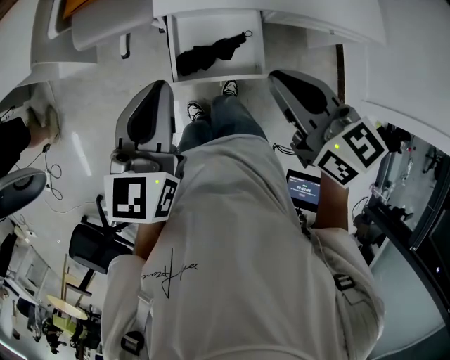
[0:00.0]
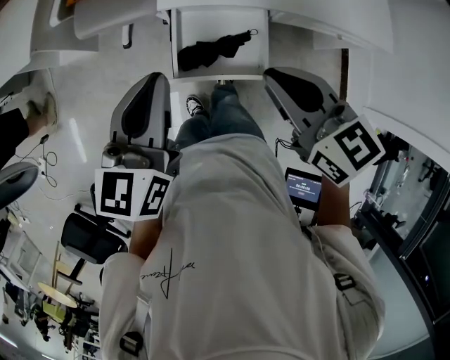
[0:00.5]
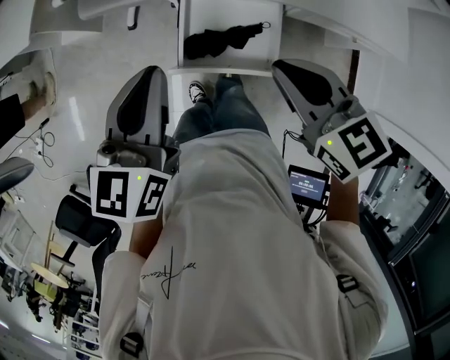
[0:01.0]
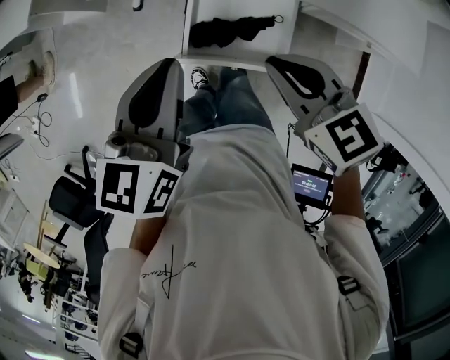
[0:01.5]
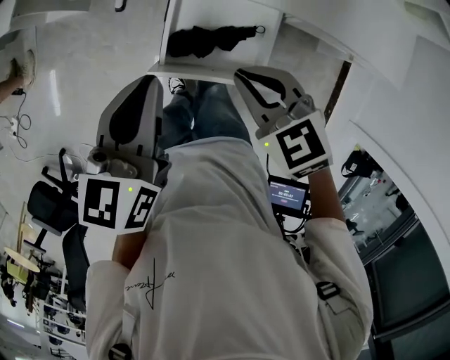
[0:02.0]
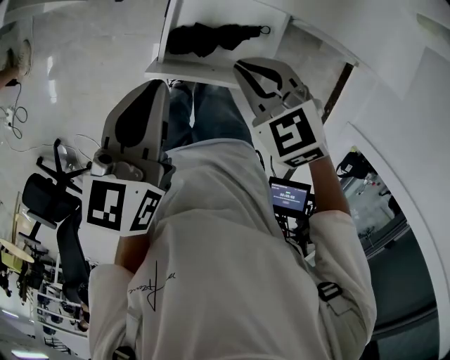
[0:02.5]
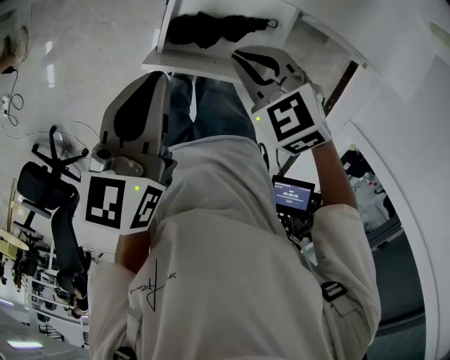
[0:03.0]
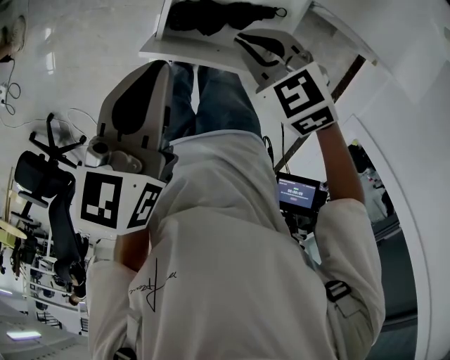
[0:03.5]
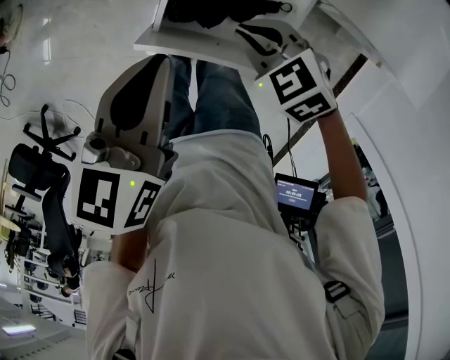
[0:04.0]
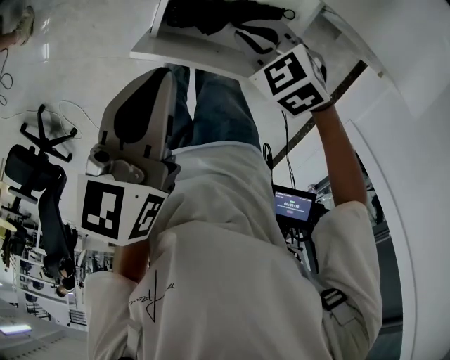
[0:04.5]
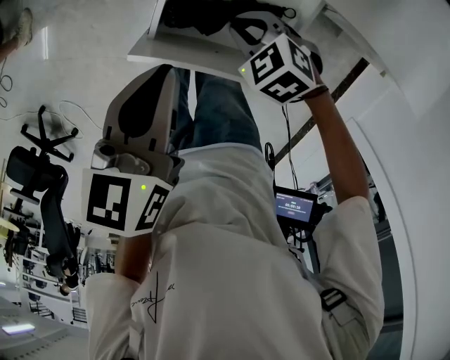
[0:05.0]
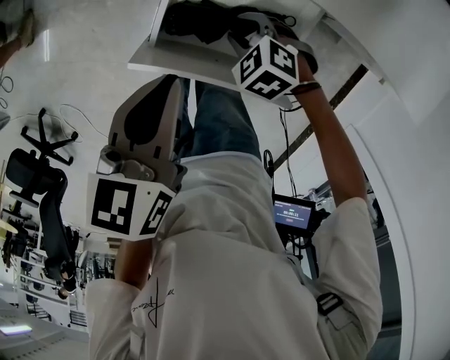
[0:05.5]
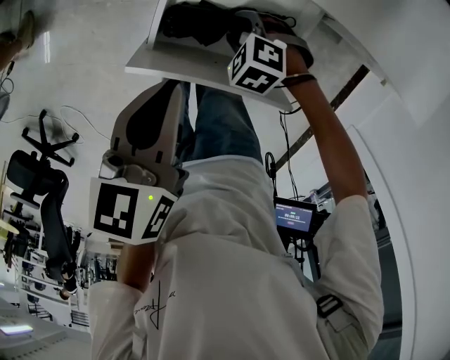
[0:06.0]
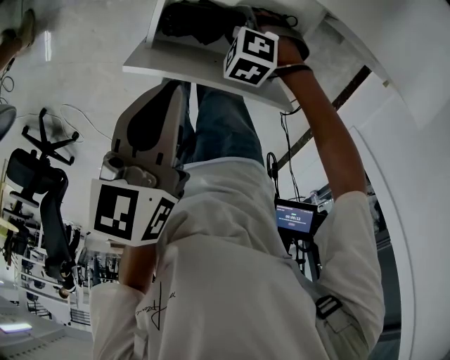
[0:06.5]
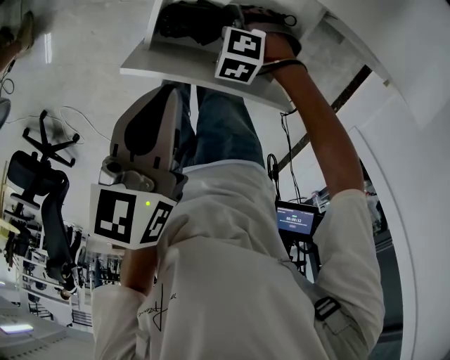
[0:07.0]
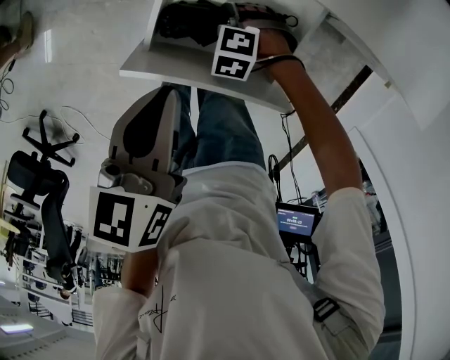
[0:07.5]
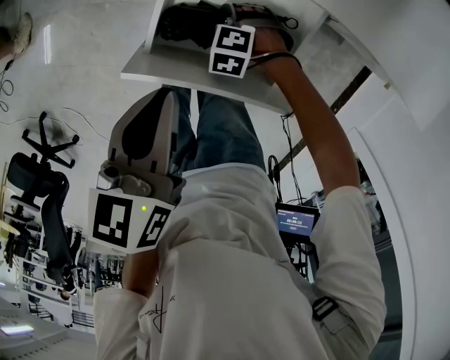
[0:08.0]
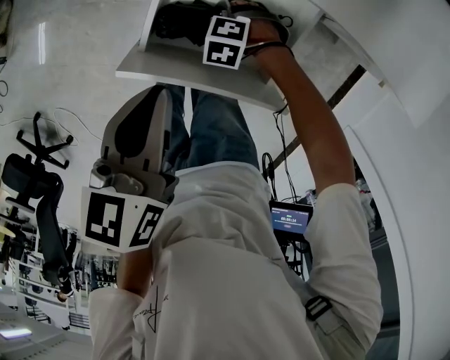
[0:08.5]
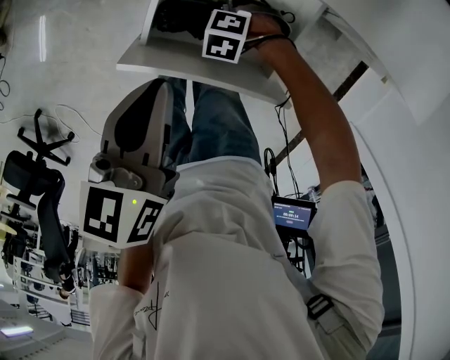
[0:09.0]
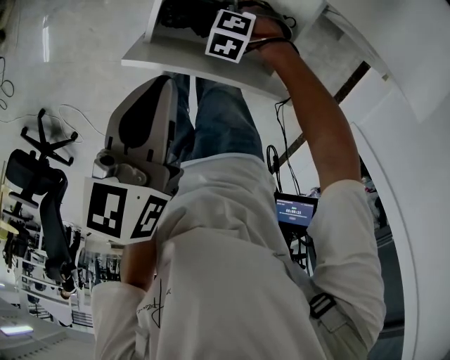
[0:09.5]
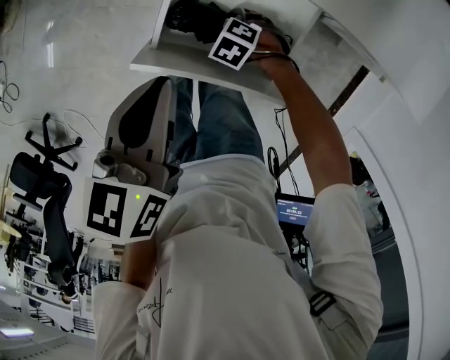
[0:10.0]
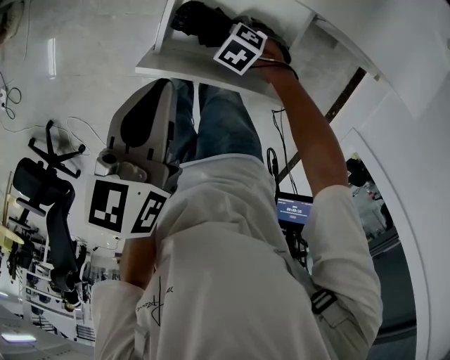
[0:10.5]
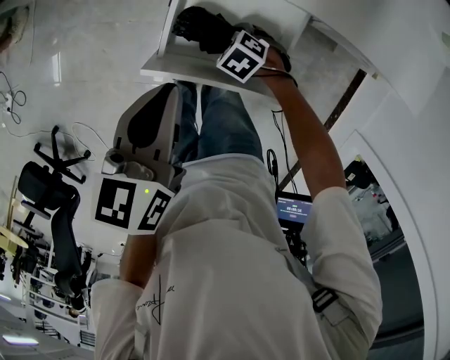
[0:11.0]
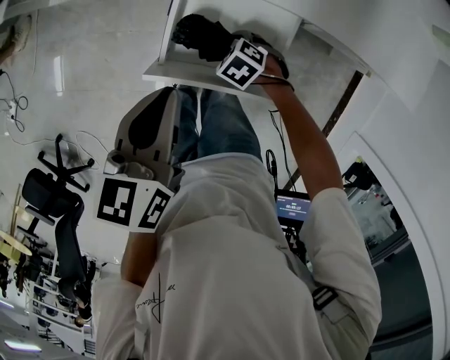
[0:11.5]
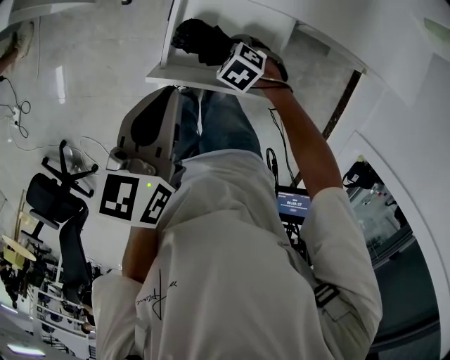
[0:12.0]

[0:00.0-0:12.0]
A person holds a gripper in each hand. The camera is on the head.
0:00.0 to 0:02.0: The left gripper is displaced downward by approximately 5 cm. Meanwhile the right gripper travels downward and forward by approximately 15 cm, and turns by about 40 degrees.
0:02.0 to 0:04.0: The right gripper goes about 15 cm downward, and rotates approximately 20 degrees. The left gripper goes roughly 10 cm downward.
0:04.0 to 0:06.0: The right gripper moves downward, about 15 cm, rotates about 30 degrees, and opens.
0:06.0 to 0:08.0: The right gripper goes about 5 cm downward.
0:08.0 to 0:10.0: The grippers stay close to where they were, moving slightly.
0:10.0 to 0:12.0: The right gripper is displaced upward by some 10 cm. The left gripper moves some 5 cm.

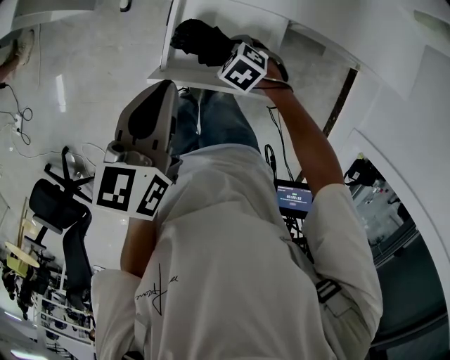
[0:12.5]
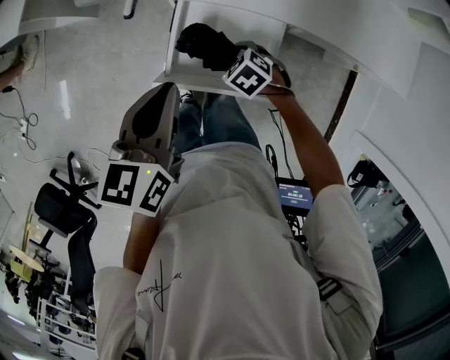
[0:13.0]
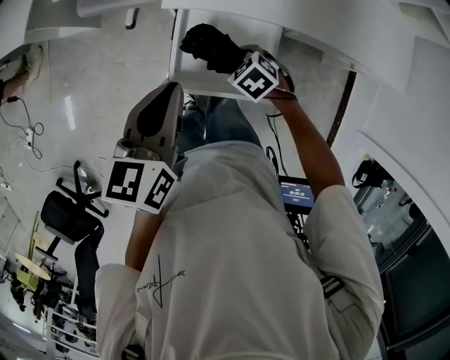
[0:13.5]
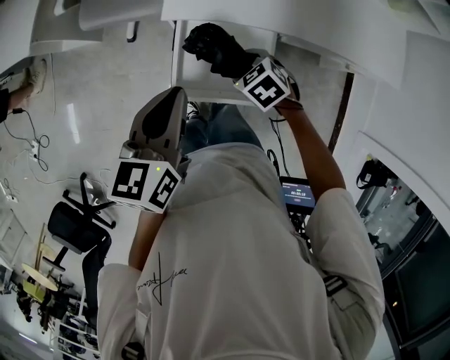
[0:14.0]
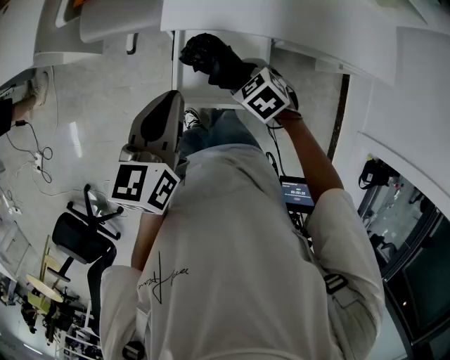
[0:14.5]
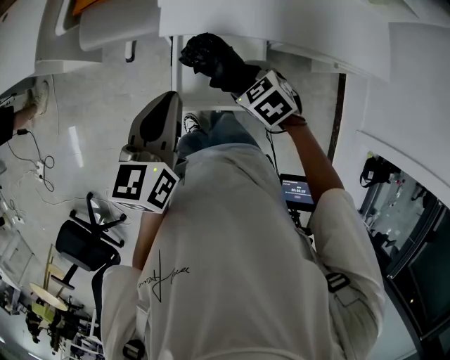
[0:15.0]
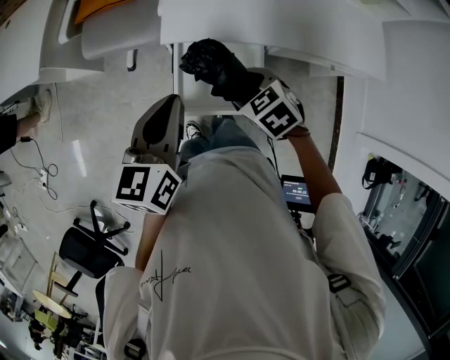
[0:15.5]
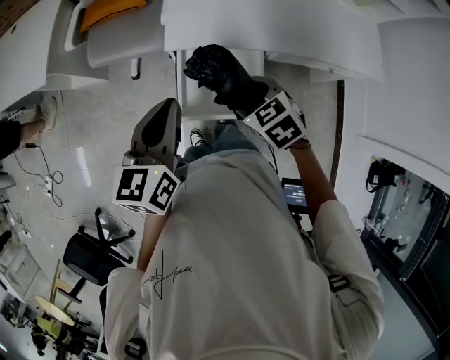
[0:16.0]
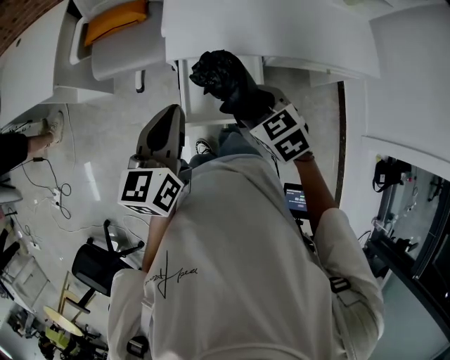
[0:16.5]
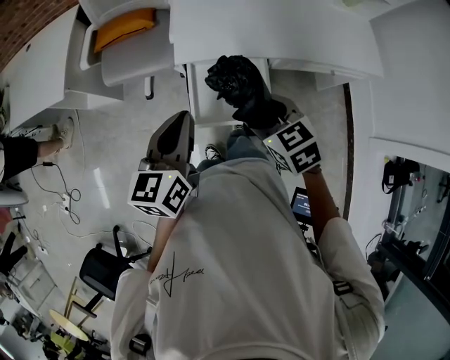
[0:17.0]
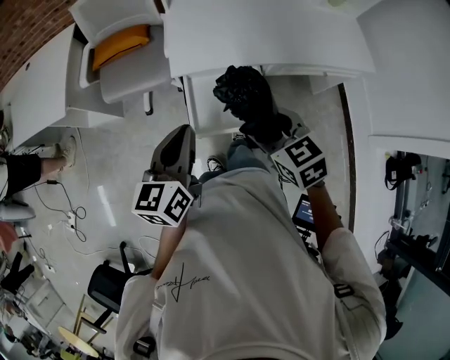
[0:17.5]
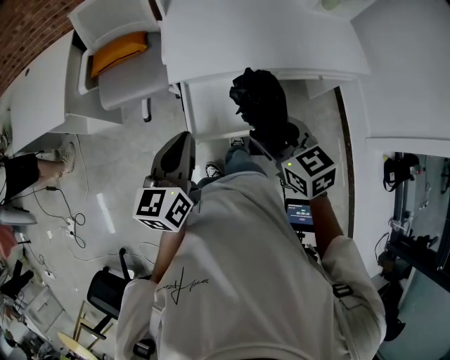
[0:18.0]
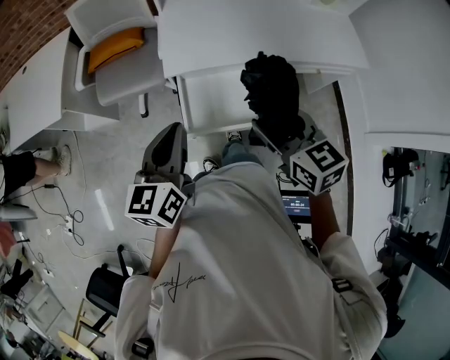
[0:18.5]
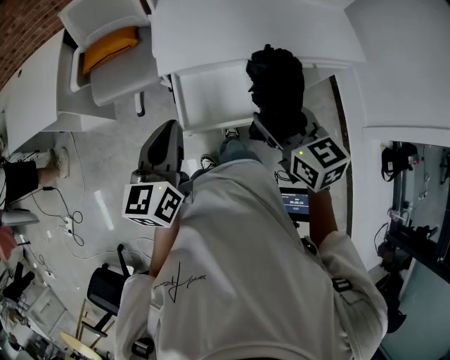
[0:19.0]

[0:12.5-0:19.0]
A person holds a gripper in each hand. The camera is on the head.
0:12.5 to 0:14.5: The right gripper goes approximately 15 cm upward; the left gripper changes place by some 5 cm.
0:14.5 to 0:17.0: The left gripper changes place by some 5 cm; the right gripper moves upward and backward, some 15 cm, and changes its angle by some 30 degrees.
0:17.0 to 0:19.0: The right gripper travels upward and to the right by about 10 cm, and changes its angle by roughly 20 degrees.

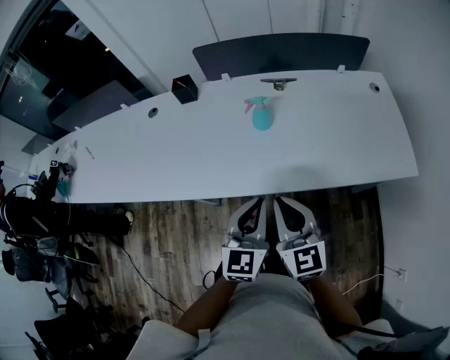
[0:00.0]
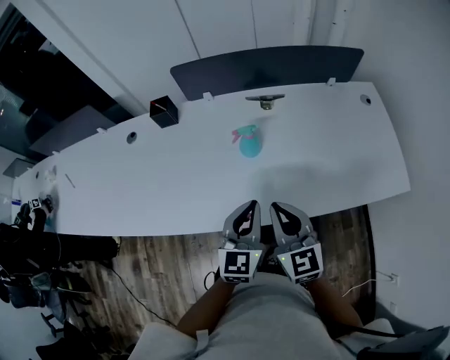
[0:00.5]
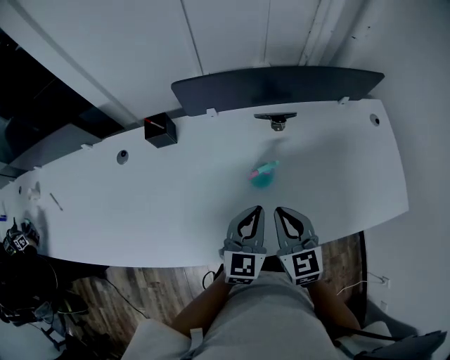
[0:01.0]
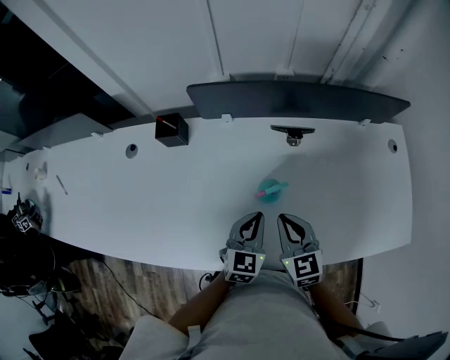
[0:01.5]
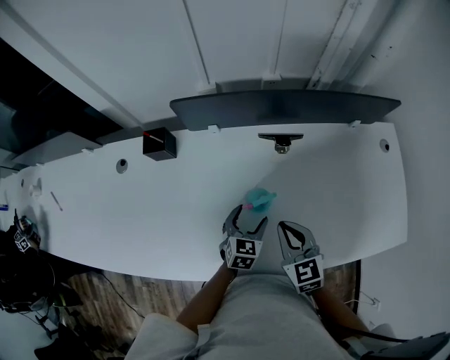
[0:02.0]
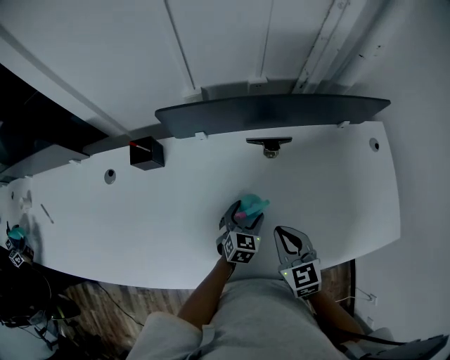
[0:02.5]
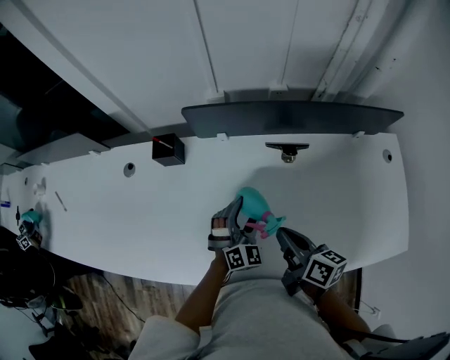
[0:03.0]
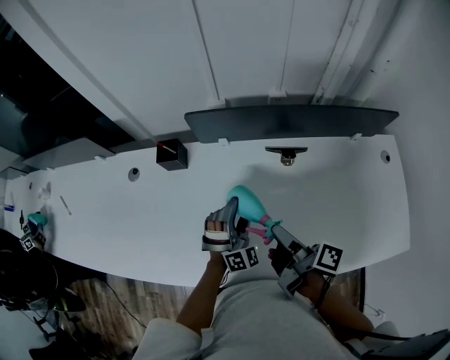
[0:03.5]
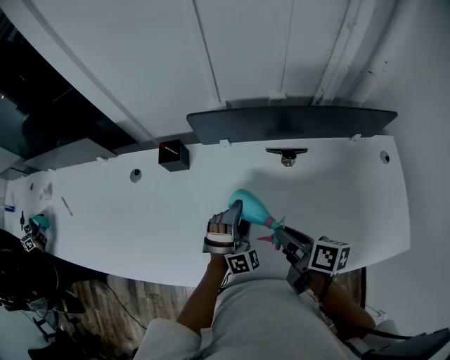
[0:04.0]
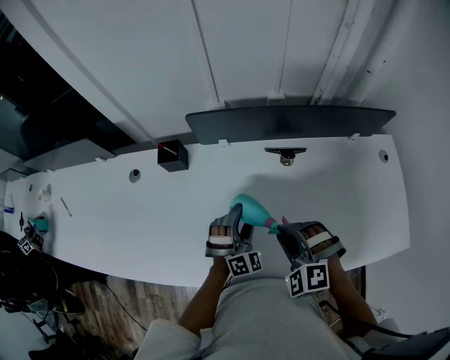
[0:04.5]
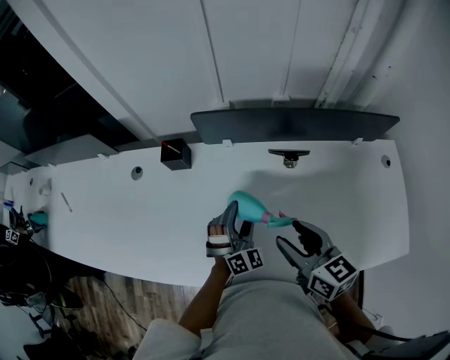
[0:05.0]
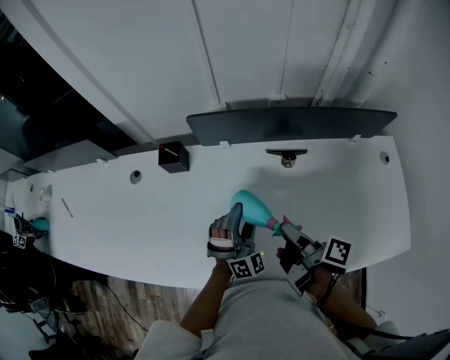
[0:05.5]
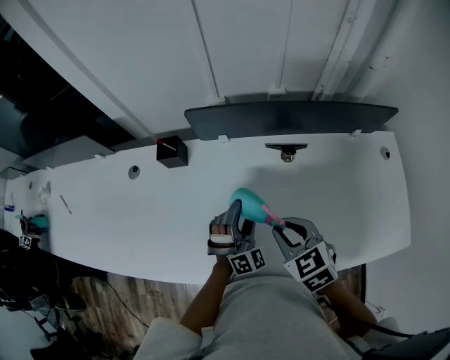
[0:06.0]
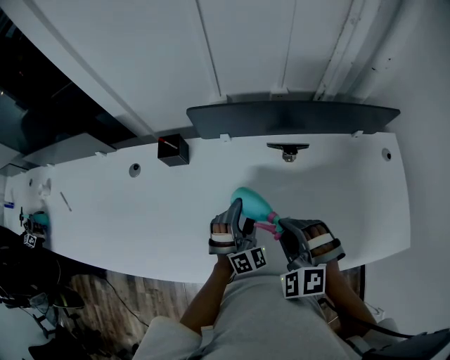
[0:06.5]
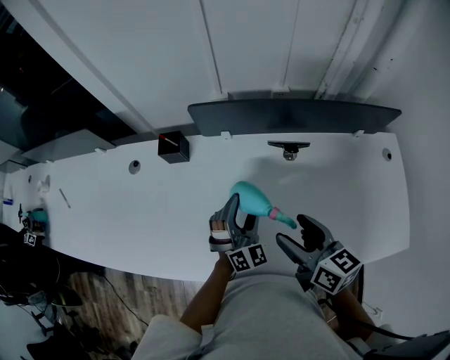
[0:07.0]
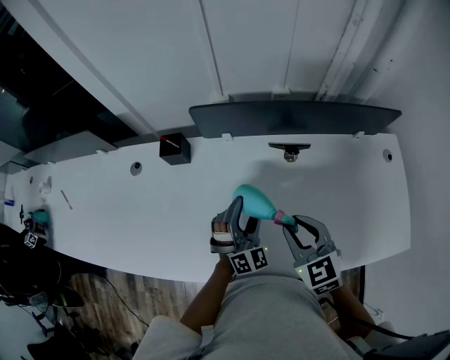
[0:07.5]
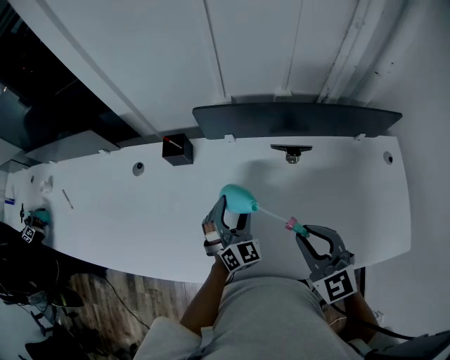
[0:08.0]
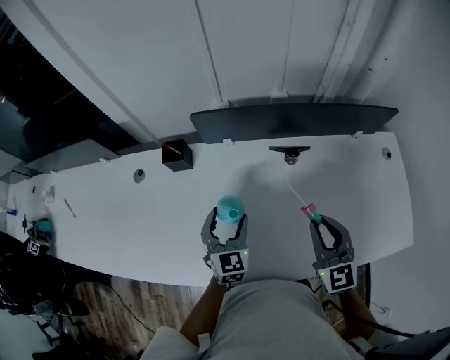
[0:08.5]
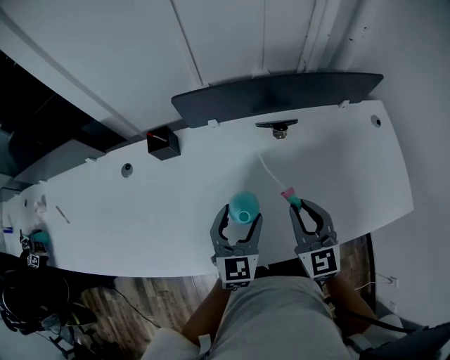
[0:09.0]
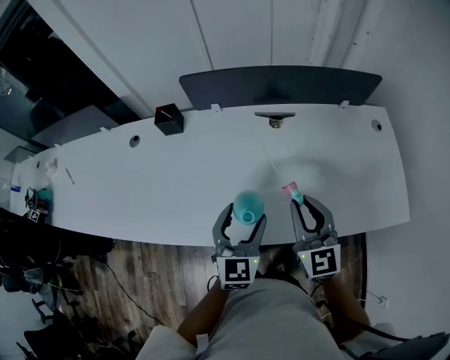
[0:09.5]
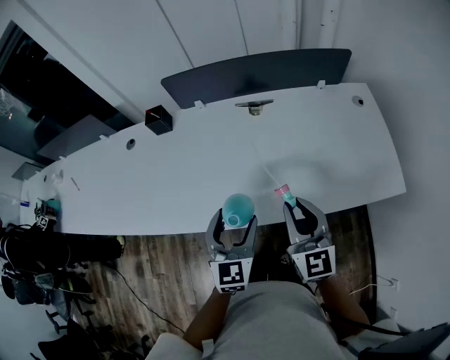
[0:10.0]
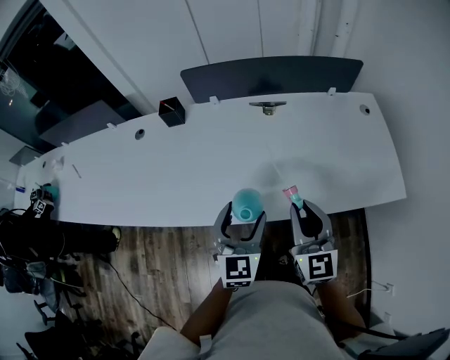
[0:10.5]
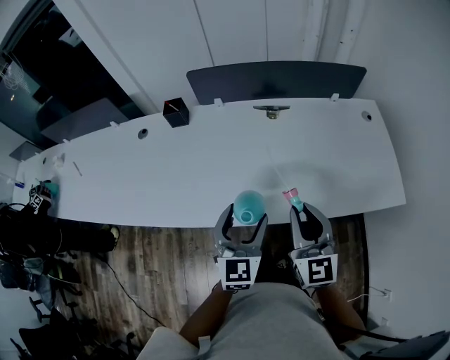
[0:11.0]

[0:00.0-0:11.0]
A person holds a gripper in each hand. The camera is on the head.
0:00.0 to 0:02.0: The left gripper goes approximately 35 cm forward and downward, rotates approximately 30 degrees, and opens its fingers, while the right gripper goes about 30 cm forward, and swivels roughly 20 degrees.
0:02.0 to 0:03.5: The right gripper goes about 5 cm upward, rolls clockwise, seen from behind, by some 90 degrees, and opens its fingers, while the left gripper shifts about 10 cm upward, and rotates around the line of its fingers by about 60 degrees, clockwise from behind.
0:05.5 to 0:07.5: The right gripper rolls counterclockwise, seen from behind, by approximately 100 degrees, and opens, then closes again.
0:07.5 to 0:09.0: The right gripper rotates roughly 20 degrees. Meanwhile the left gripper travels backward by roughly 5 cm, and twists about 40 degrees counterclockwise, seen from behind.
0:09.0 to 0:11.0: Both grippers travel together backward, roughly 20 cm.
